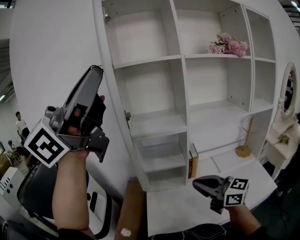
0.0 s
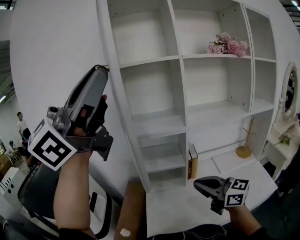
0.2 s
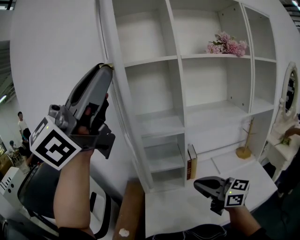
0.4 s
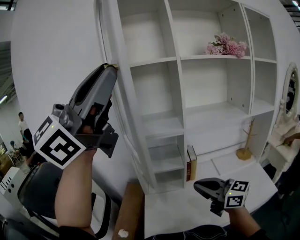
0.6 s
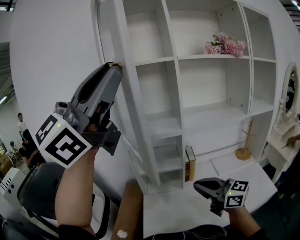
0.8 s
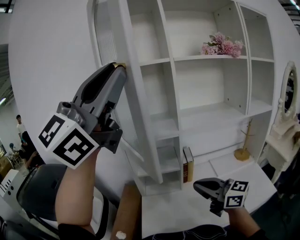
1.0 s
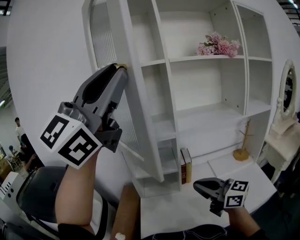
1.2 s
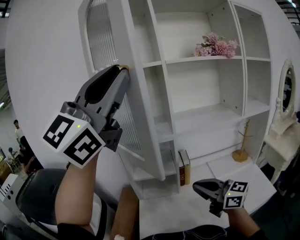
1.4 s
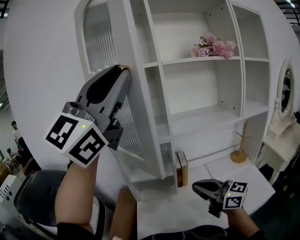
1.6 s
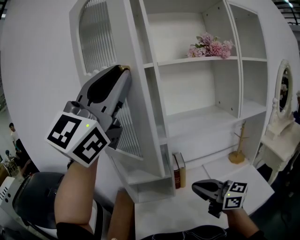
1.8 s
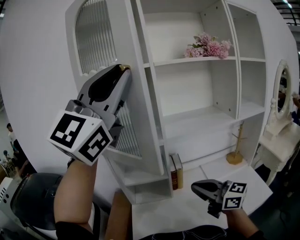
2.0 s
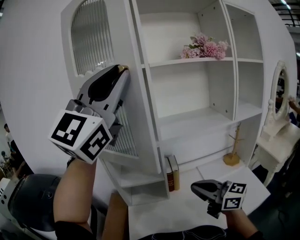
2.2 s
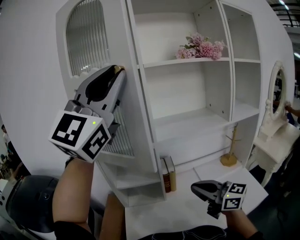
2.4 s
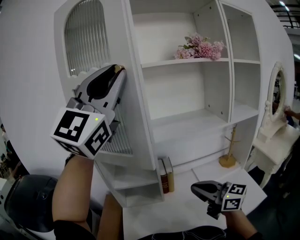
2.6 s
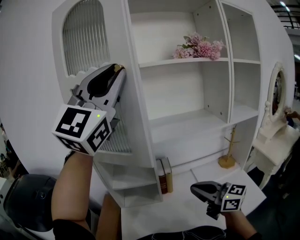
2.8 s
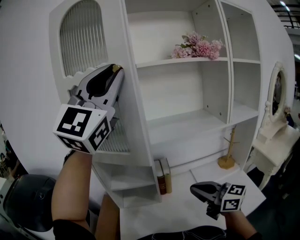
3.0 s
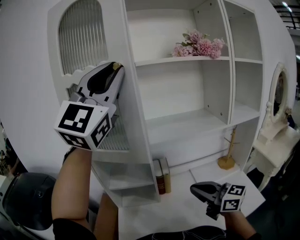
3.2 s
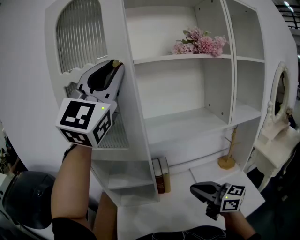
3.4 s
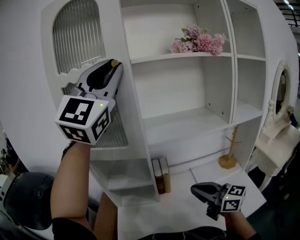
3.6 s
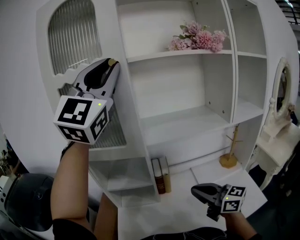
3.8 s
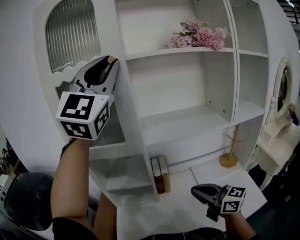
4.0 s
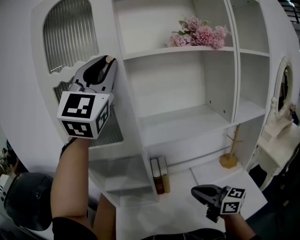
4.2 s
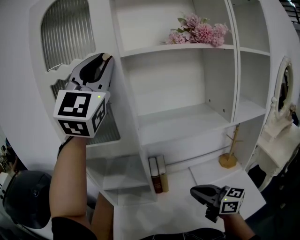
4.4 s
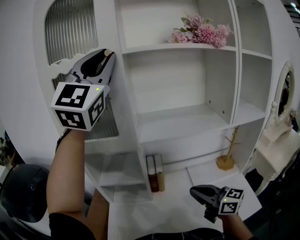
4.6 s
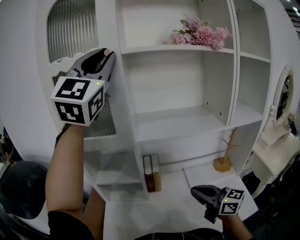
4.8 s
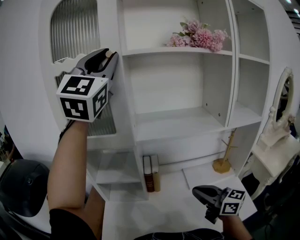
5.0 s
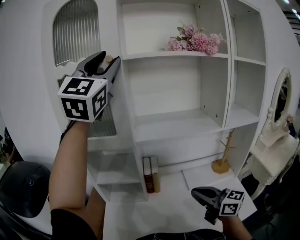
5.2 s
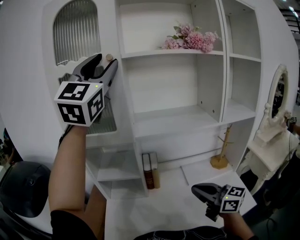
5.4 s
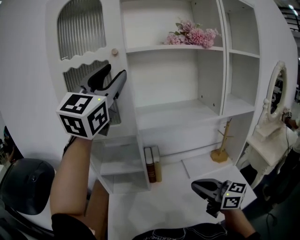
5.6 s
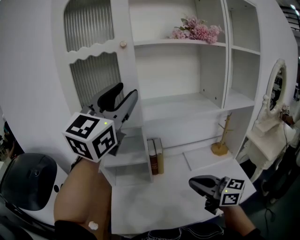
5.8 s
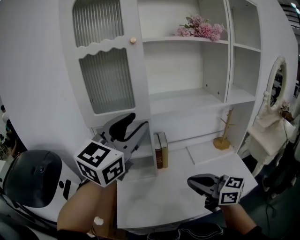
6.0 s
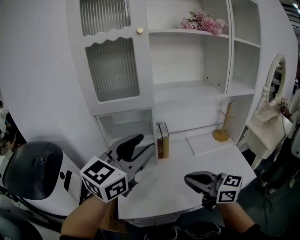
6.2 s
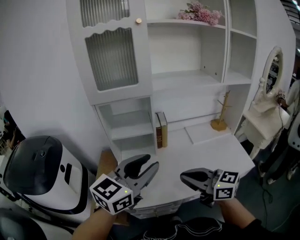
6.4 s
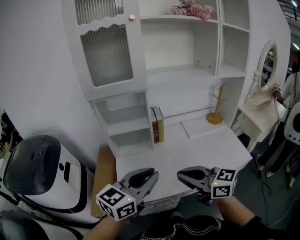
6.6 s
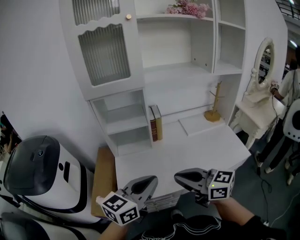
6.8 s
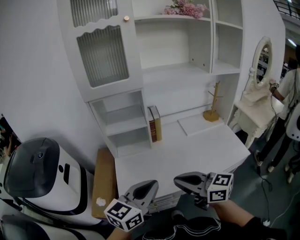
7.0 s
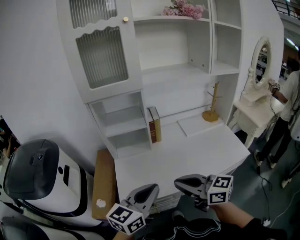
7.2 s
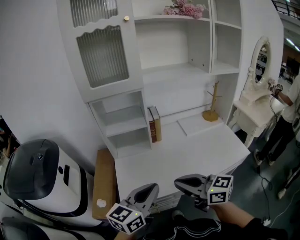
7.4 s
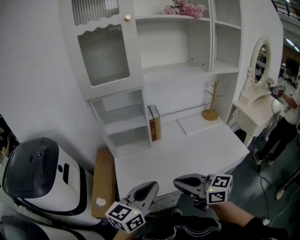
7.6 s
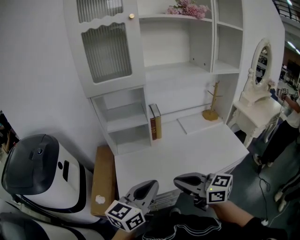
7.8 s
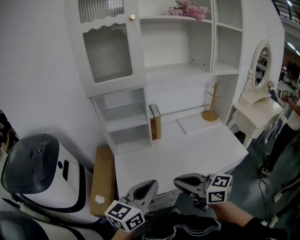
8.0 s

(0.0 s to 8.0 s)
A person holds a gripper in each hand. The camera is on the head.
0.0 s - 1.6 s: The left gripper goes roughly 15 cm to the right and forward, and changes its angle by approximately 30 degrees; the right gripper moves to the right, about 10 cm.
1.6 s - 3.2 s: The left gripper moves forward and to the right, roughly 10 cm, while the right gripper is displaced to the right by about 10 cm.
3.2 s - 4.8 s: The left gripper is displaced forward by about 10 cm. Meanwhile the right gripper moves to the right, roughly 5 cm.
4.8 s - 6.4 s: The left gripper is displaced downward and backward by roughly 50 cm, and rotates about 60 degrees. Meanwhile the right gripper is displaced backward and to the left by about 25 cm.
6.4 s - 8.0 s: The left gripper moves downward and backward, about 15 cm, and closes up. The right gripper moves backward, roughly 5 cm.

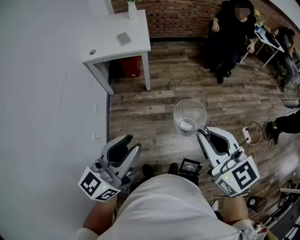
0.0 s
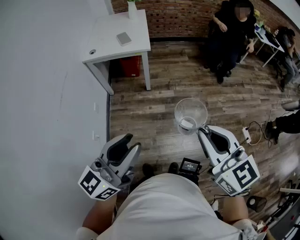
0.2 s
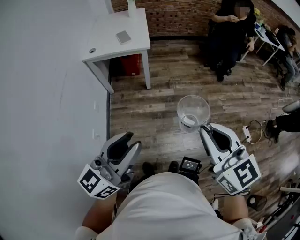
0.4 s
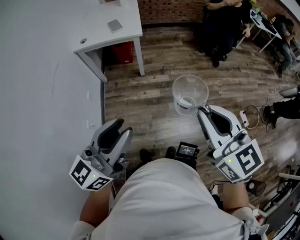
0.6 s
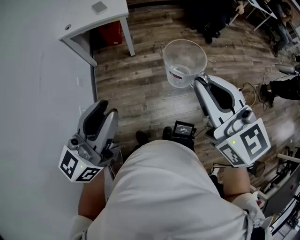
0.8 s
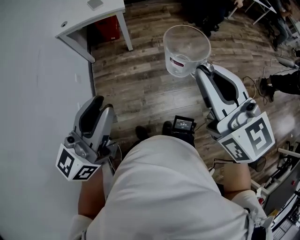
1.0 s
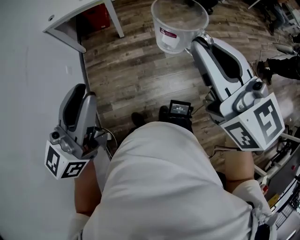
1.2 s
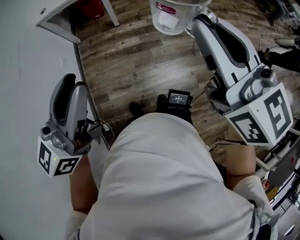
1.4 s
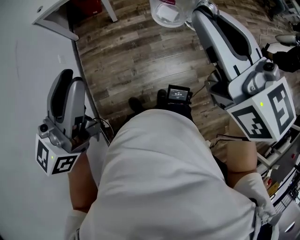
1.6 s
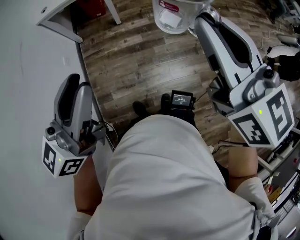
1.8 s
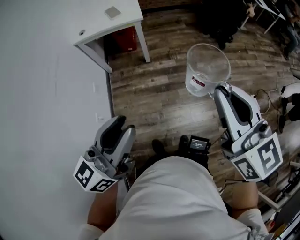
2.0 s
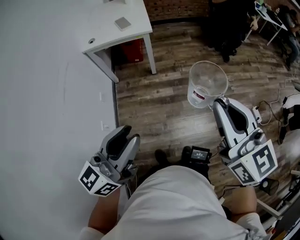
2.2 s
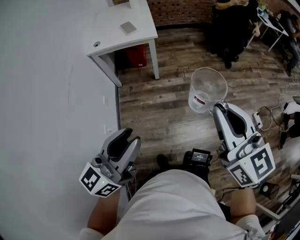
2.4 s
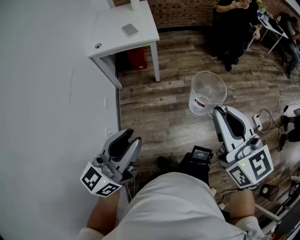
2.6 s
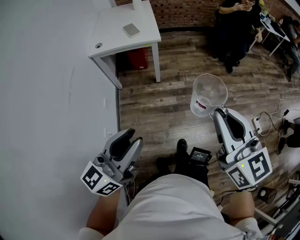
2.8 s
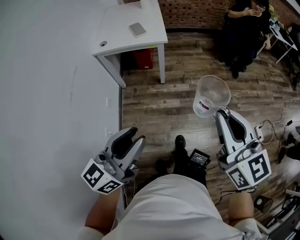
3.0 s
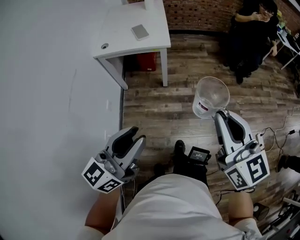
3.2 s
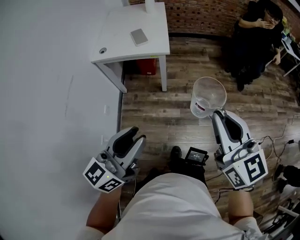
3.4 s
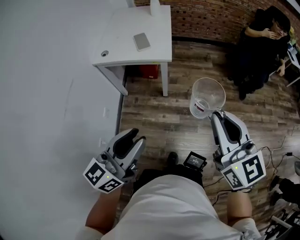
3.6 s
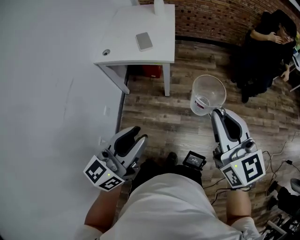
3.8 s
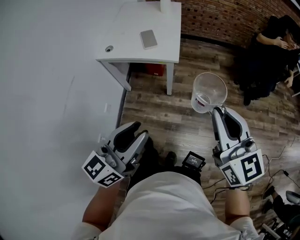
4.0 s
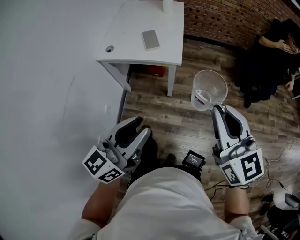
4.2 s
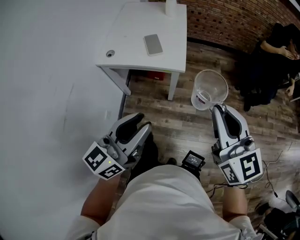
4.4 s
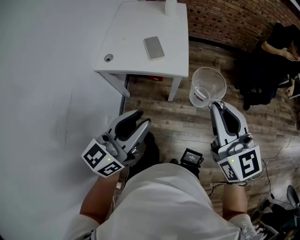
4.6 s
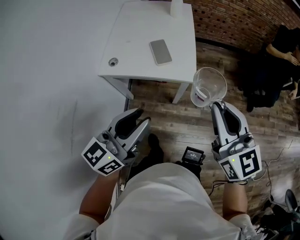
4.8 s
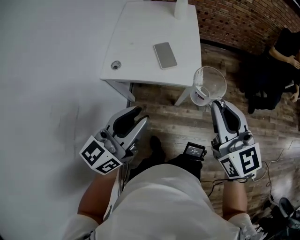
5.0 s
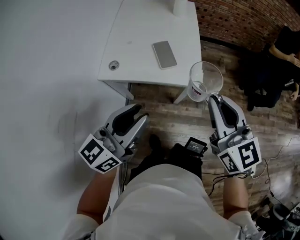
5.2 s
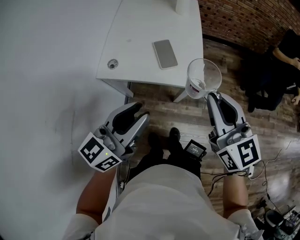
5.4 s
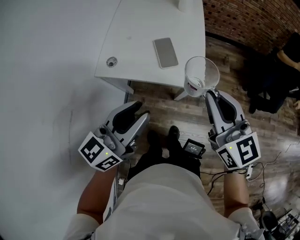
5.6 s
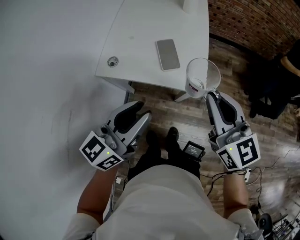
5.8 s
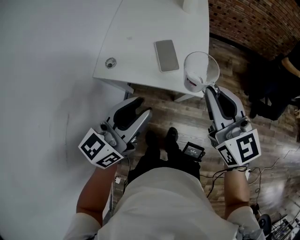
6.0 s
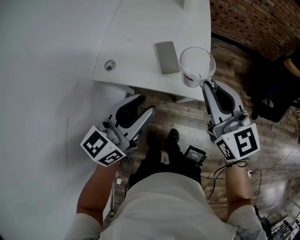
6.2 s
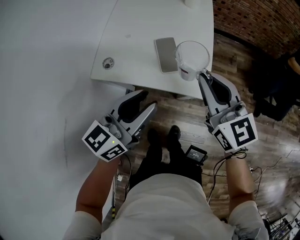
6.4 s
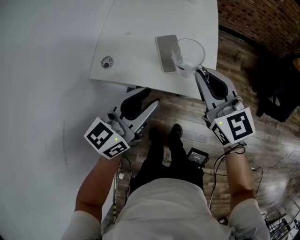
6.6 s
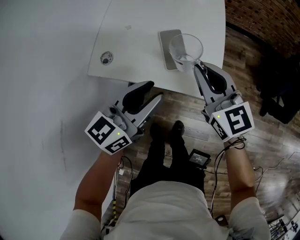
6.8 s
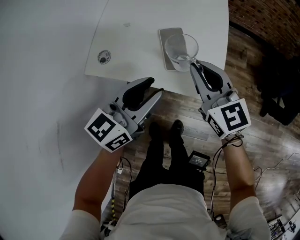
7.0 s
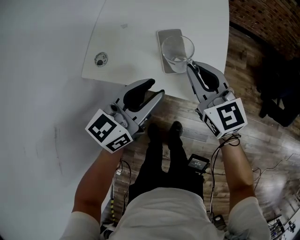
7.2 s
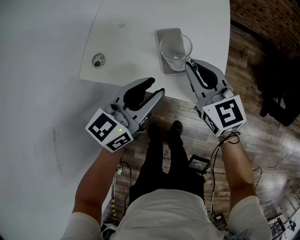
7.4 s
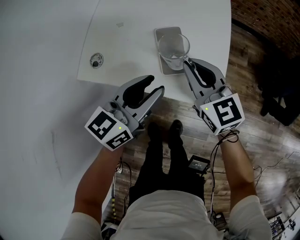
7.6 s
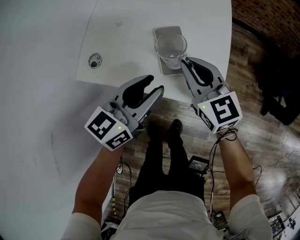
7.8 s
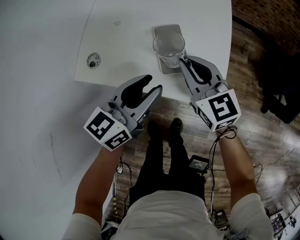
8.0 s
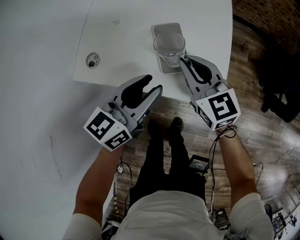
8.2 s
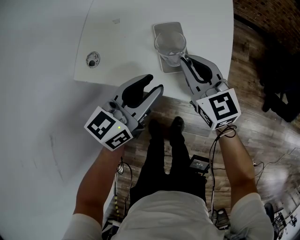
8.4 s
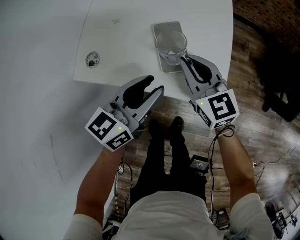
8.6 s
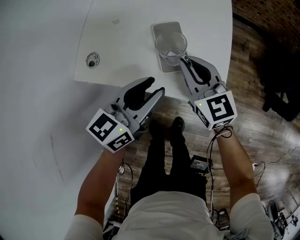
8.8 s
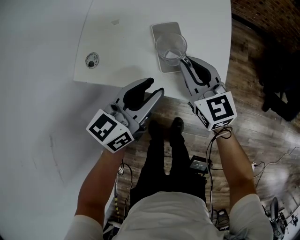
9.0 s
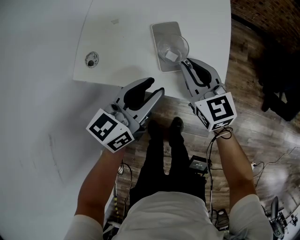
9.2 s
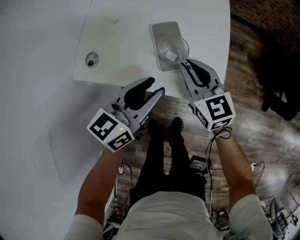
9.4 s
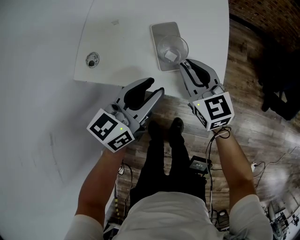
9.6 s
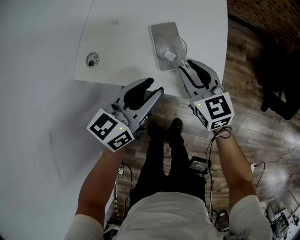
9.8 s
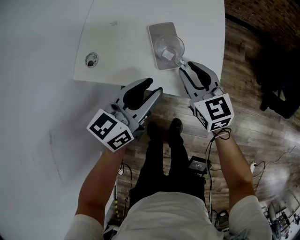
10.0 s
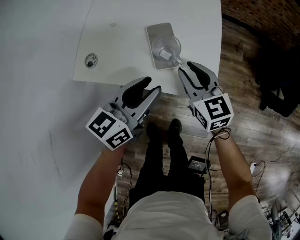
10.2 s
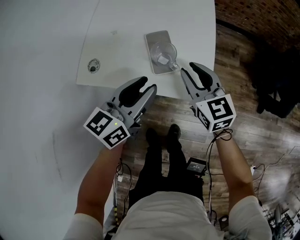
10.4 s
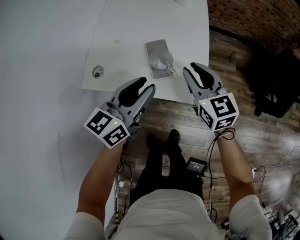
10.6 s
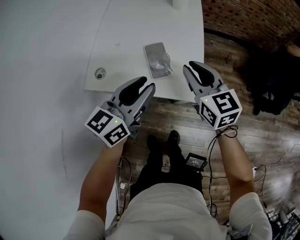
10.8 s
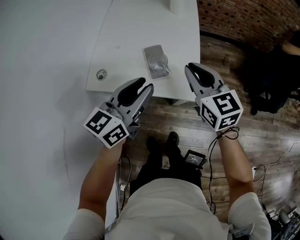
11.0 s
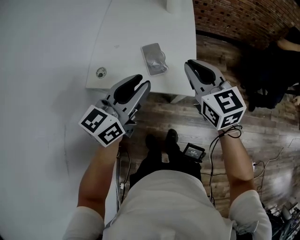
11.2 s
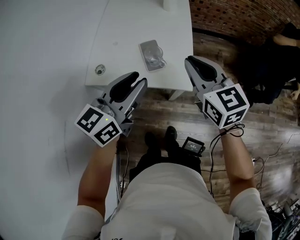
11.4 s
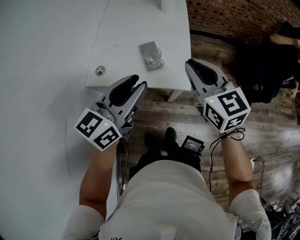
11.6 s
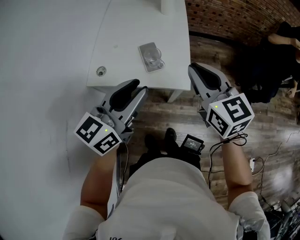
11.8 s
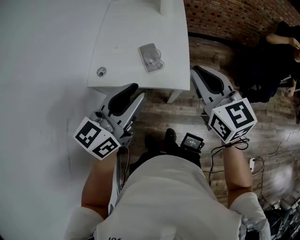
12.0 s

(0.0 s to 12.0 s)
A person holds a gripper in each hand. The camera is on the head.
0.0 s - 3.0 s: The grippers move only a little.
3.0 s - 4.4 s: The two grippers go roughly 35 cm forward.
4.4 s - 6.0 s: Both grippers travel together forward and to the left, about 30 cm.
6.0 s - 7.6 s: The grippers both shift downward and forward by approximately 20 cm.
7.6 s - 9.0 s: The grippers stay close to where they were, moving slightly.
9.0 s - 10.4 s: The right gripper moves some 5 cm.
10.4 s - 12.0 s: The two grippers go some 25 cm upward and backward.

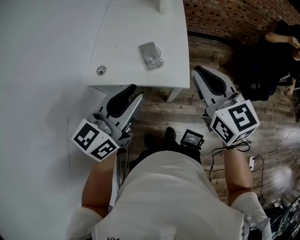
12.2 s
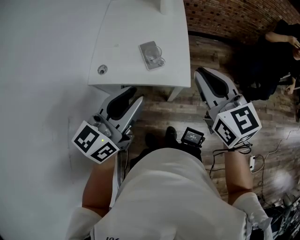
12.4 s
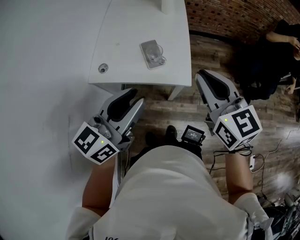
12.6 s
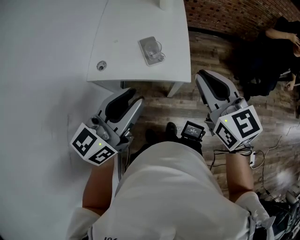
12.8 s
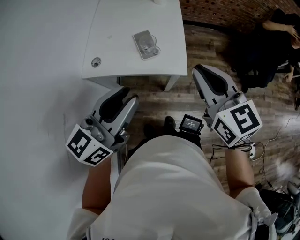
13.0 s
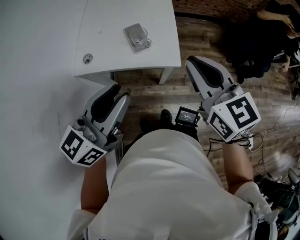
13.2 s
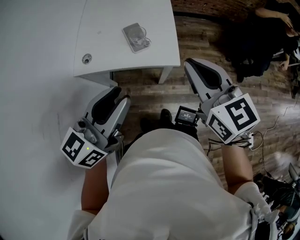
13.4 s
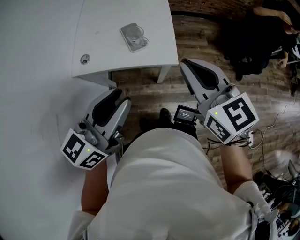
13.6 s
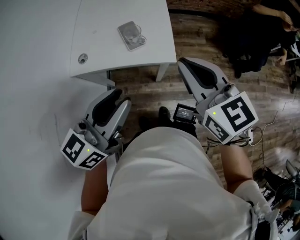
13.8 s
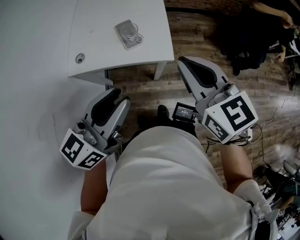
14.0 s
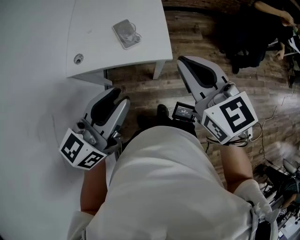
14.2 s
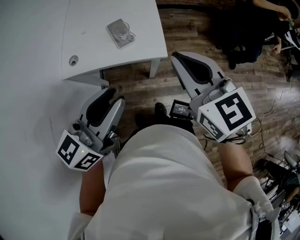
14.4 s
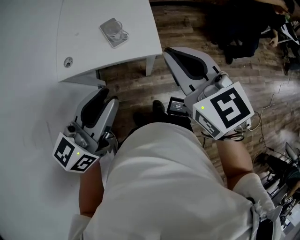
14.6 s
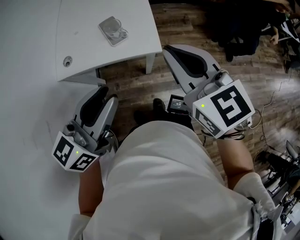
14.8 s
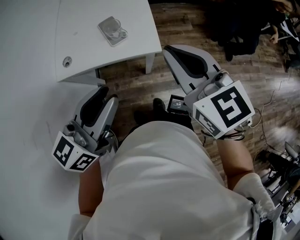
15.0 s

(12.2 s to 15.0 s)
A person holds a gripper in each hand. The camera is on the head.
12.2 s - 13.6 s: The two grippers go some 5 cm backward.
13.6 s - 15.0 s: The grippers stay close to where they were, moving slightly.

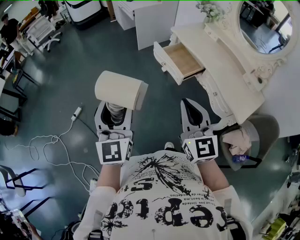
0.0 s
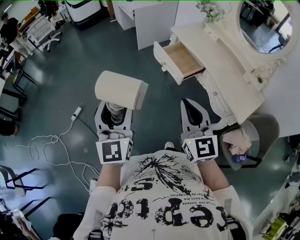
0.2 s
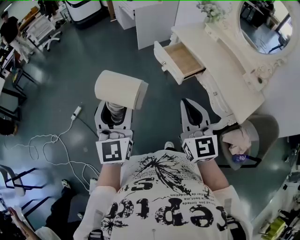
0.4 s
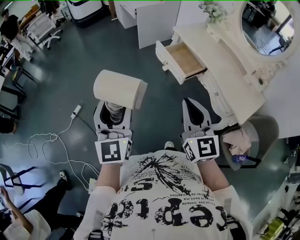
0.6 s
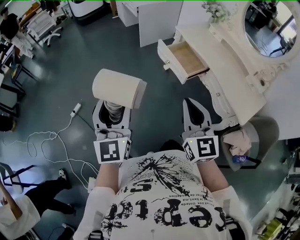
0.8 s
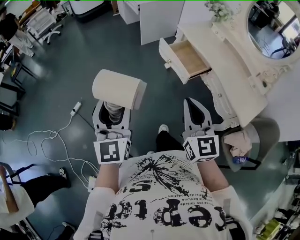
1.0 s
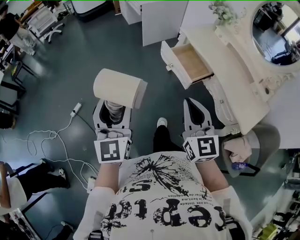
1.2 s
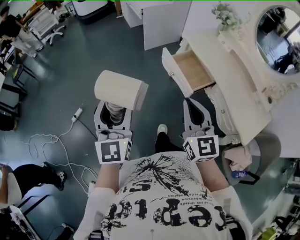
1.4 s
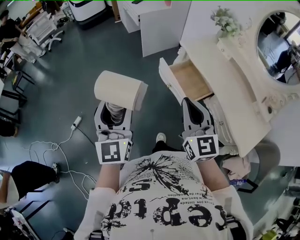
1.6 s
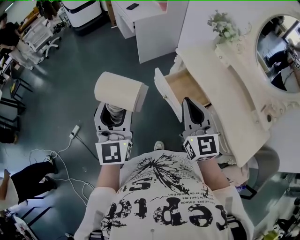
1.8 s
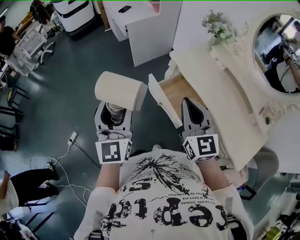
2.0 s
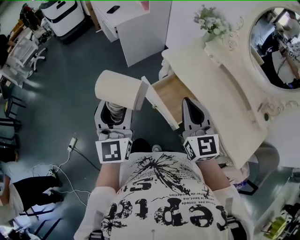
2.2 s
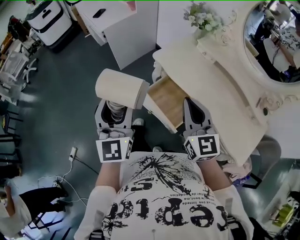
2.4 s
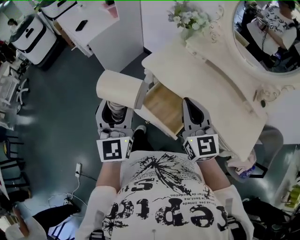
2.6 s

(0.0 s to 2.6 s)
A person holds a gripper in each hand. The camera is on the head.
0.0 s - 1.2 s: The grippers both shift forward by about 5 cm.
1.2 s - 2.6 s: The two grippers travel together, forward and to the right, approximately 50 cm. The left gripper swivels approximately 20 degrees.
